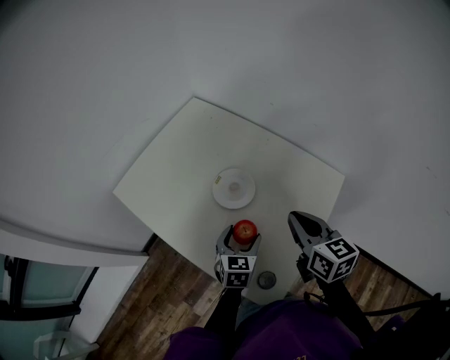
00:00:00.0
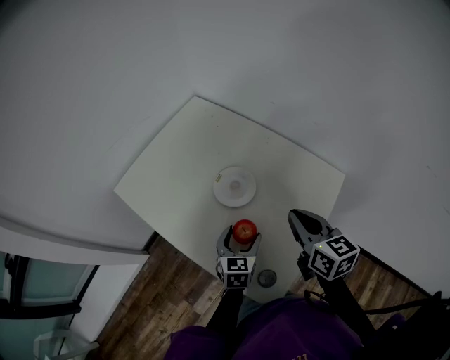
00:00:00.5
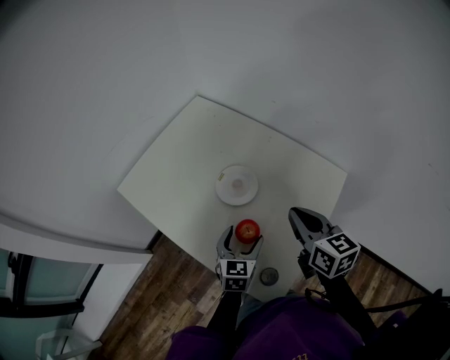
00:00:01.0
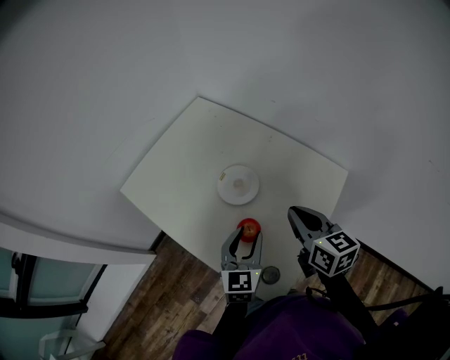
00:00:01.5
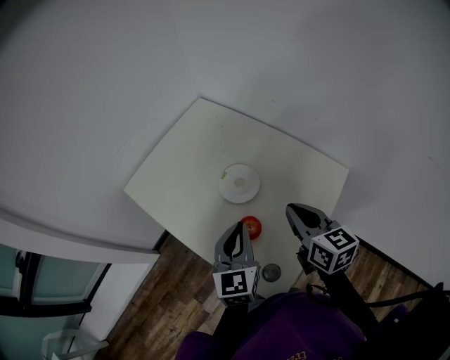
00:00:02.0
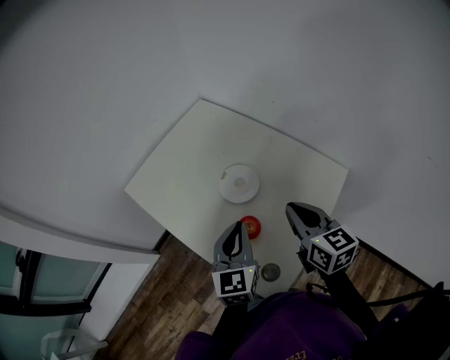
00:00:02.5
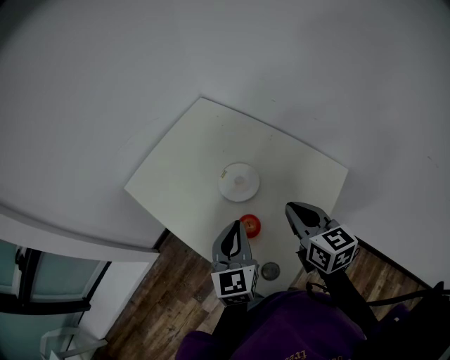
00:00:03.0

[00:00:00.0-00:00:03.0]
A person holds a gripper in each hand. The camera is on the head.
00:00:00.0 to 00:00:01.5: The left gripper goes approximately 10 cm upward, and closes its fingers.
00:00:01.5 to 00:00:03.0: The left gripper travels upward by about 5 cm, and closes its fingers.

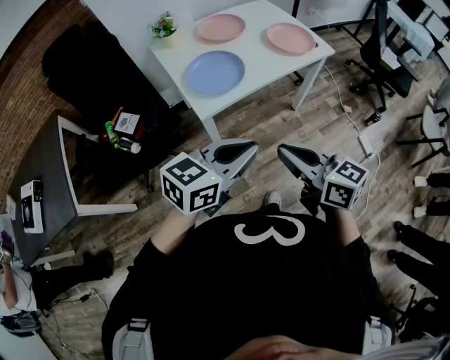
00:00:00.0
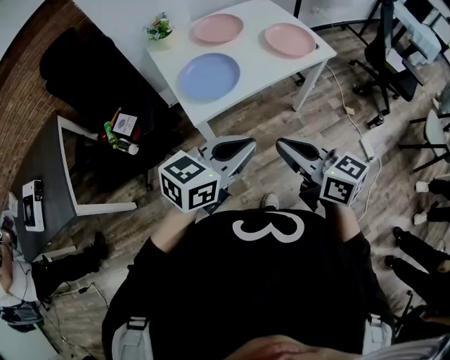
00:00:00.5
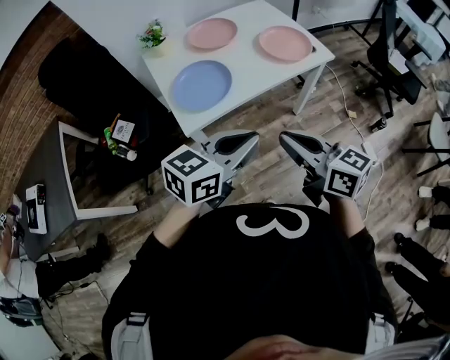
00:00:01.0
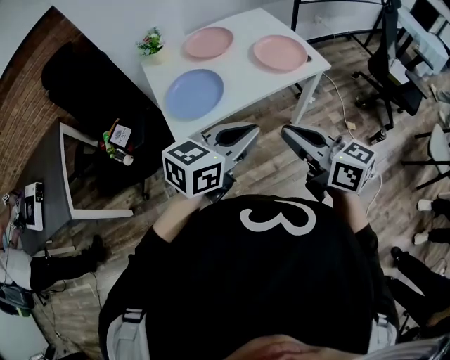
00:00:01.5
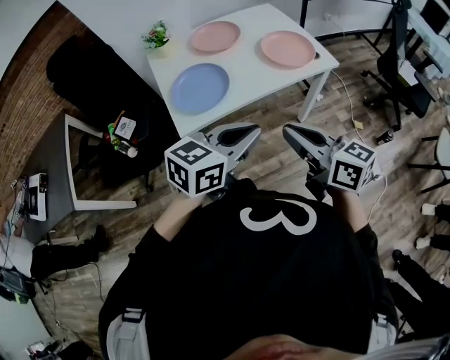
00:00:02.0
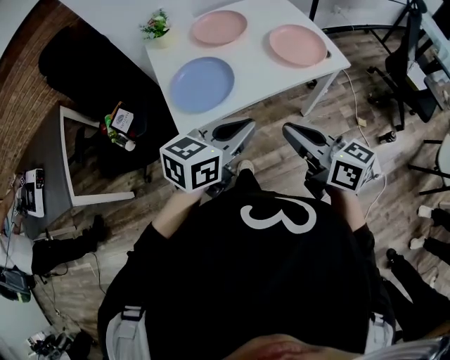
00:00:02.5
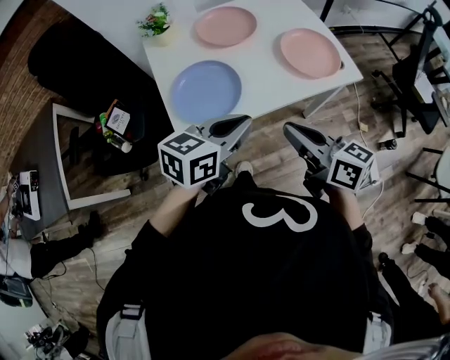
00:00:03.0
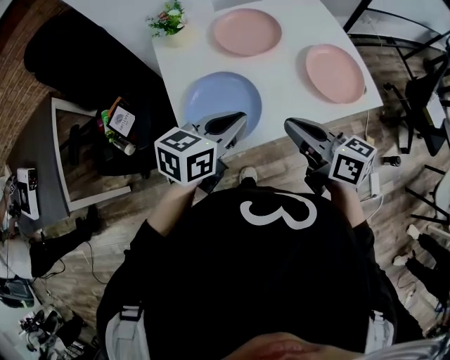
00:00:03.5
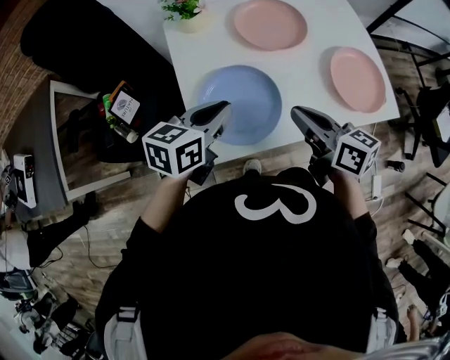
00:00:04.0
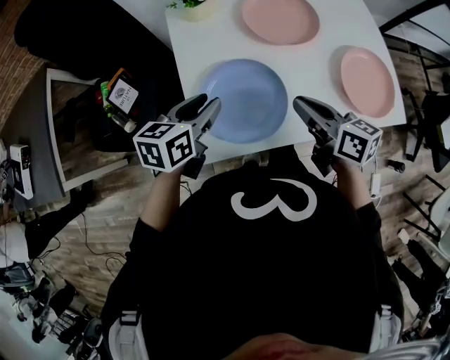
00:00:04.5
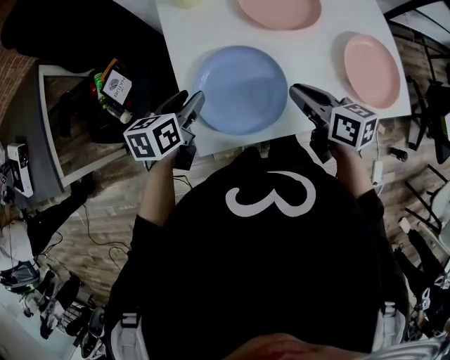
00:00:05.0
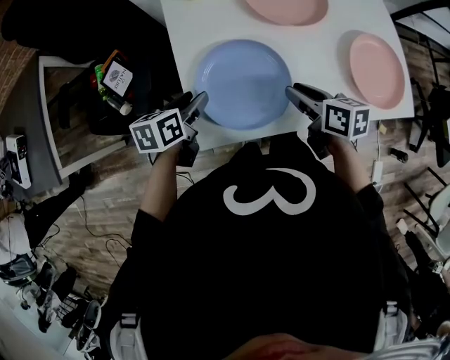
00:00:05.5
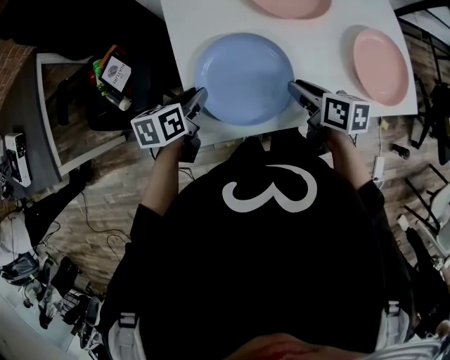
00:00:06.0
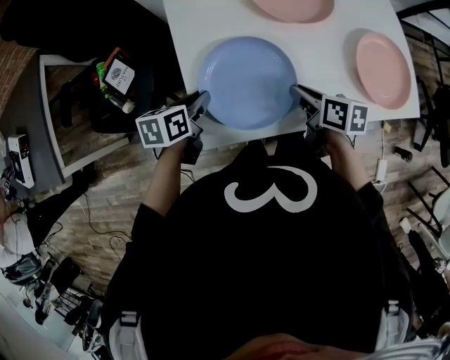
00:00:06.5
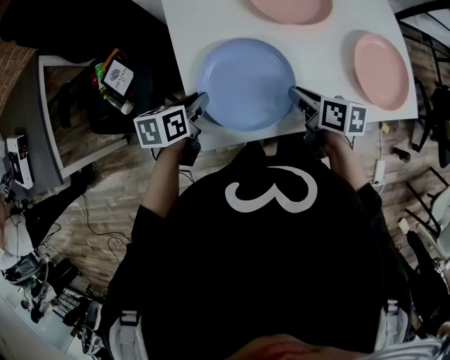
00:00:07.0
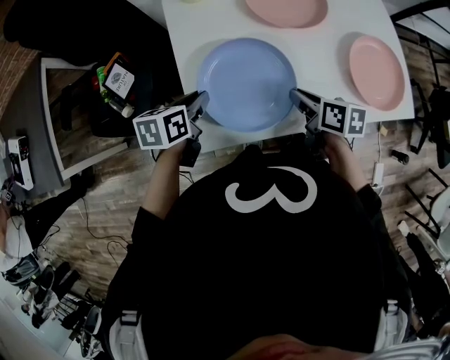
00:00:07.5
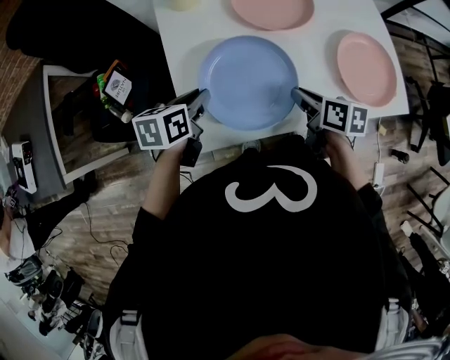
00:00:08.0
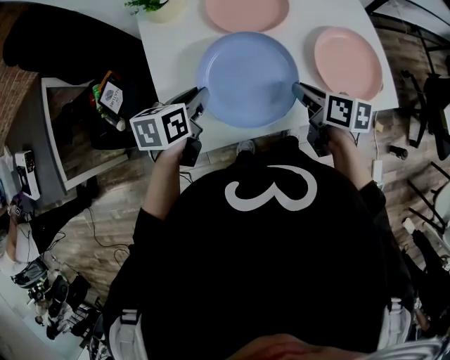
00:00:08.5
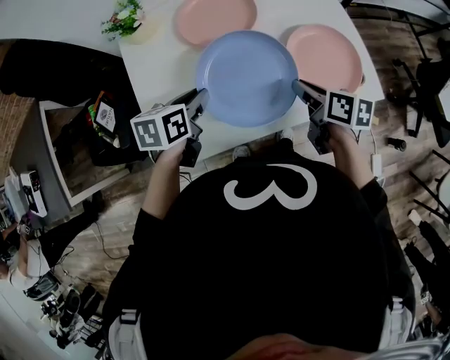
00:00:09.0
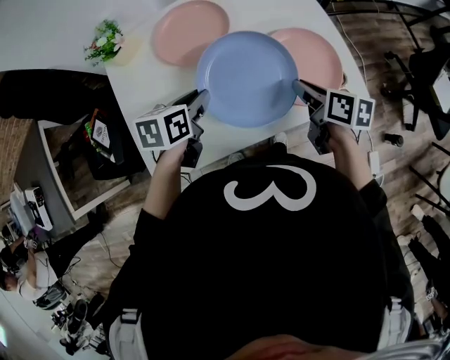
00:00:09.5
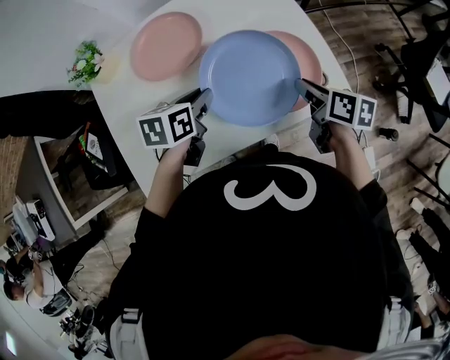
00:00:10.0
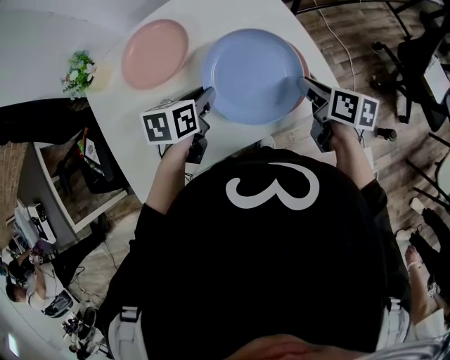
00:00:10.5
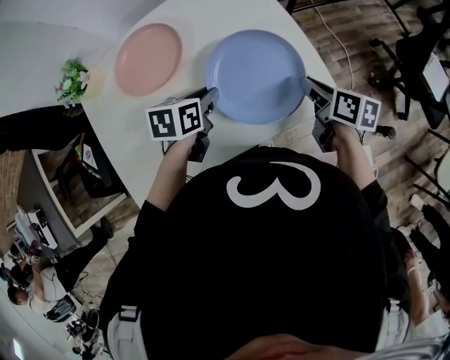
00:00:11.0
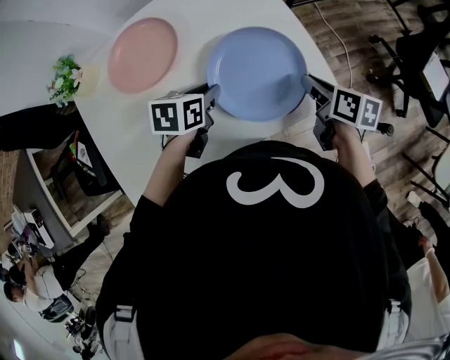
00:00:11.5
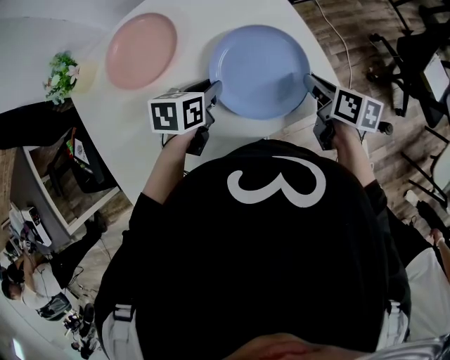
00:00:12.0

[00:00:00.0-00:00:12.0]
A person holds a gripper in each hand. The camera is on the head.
00:00:00.0 to 00:00:02.0: The grippers both shift to the right and forward by about 20 cm.
00:00:02.0 to 00:00:04.0: The two grippers go approximately 35 cm forward and to the left. The left gripper rotates approximately 30 degrees.
00:00:04.0 to 00:00:06.0: The right gripper shifts approximately 15 cm downward, turns by some 20 degrees, and opens its fingers; the left gripper shifts roughly 20 cm downward and to the left, turns by approximately 30 degrees, and opens up.
00:00:06.0 to 00:00:08.0: The left gripper goes roughly 10 cm upward and to the right.
00:00:08.0 to 00:00:10.0: Both grippers travel together to the right, approximately 30 cm.
00:00:10.0 to 00:00:12.0: The right gripper travels to the right by approximately 10 cm. Meanwhile the left gripper is displaced to the right and downward by approximately 10 cm.

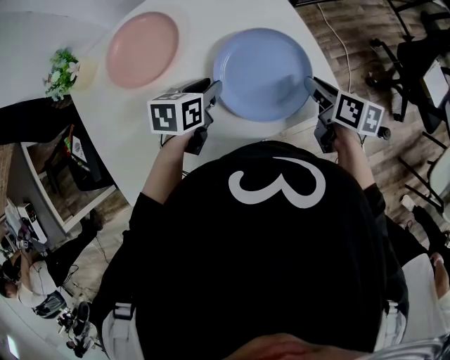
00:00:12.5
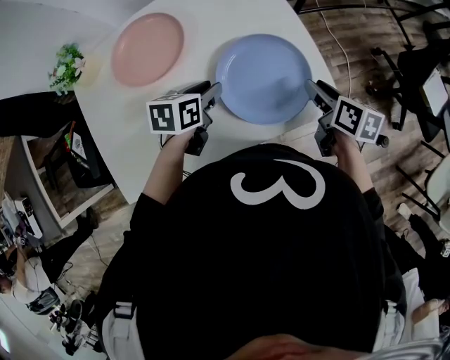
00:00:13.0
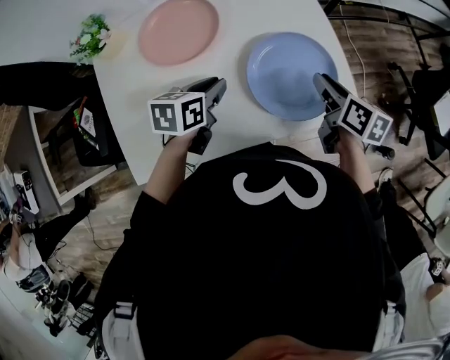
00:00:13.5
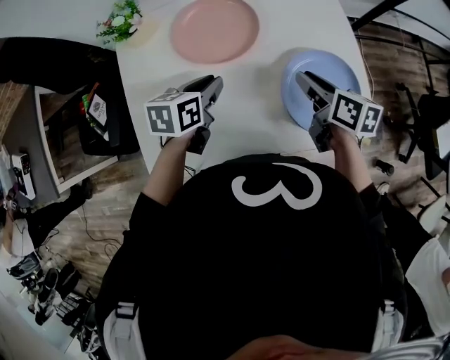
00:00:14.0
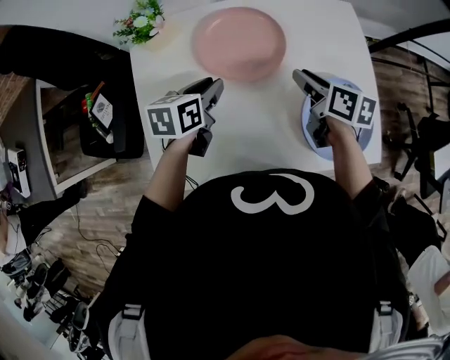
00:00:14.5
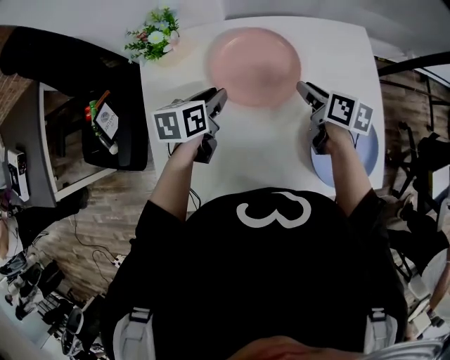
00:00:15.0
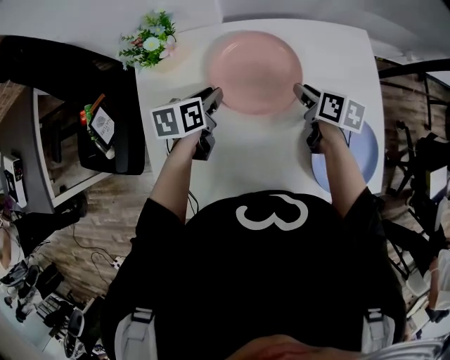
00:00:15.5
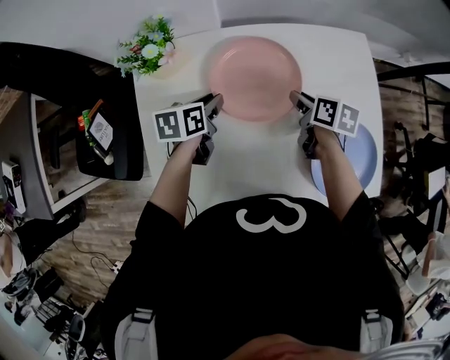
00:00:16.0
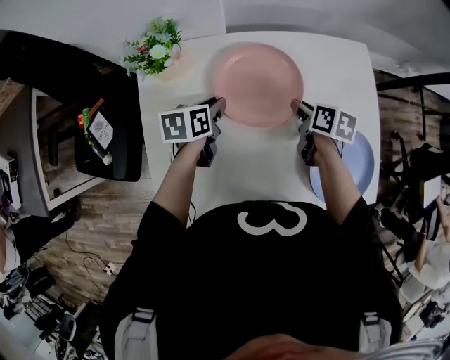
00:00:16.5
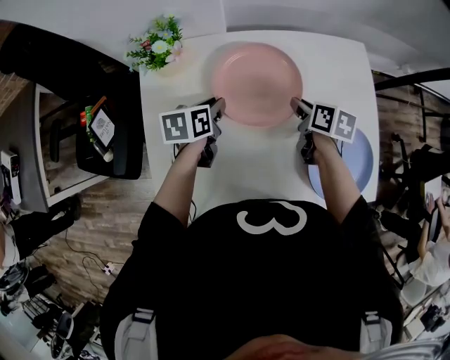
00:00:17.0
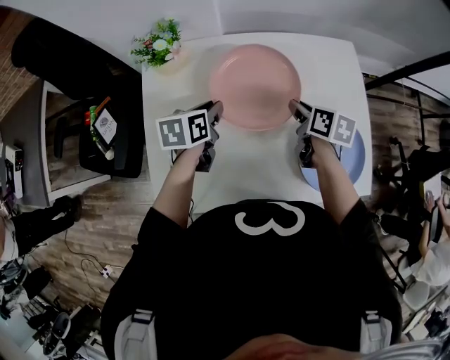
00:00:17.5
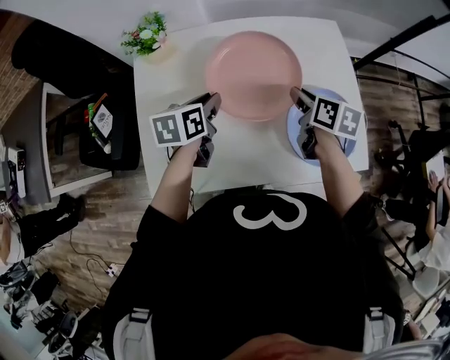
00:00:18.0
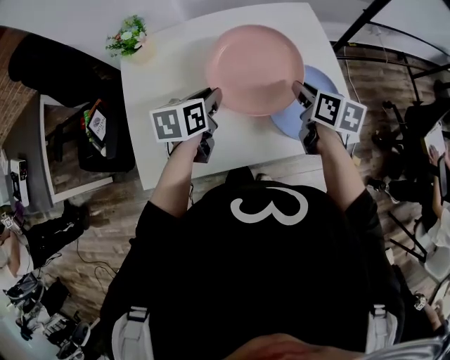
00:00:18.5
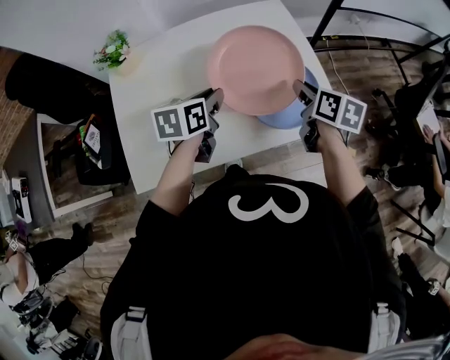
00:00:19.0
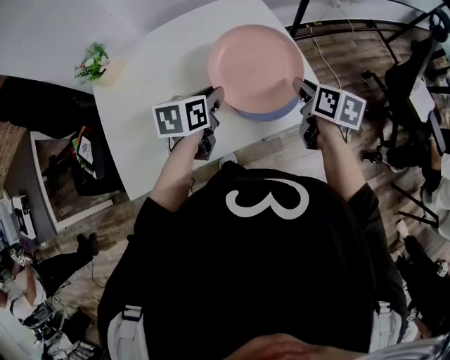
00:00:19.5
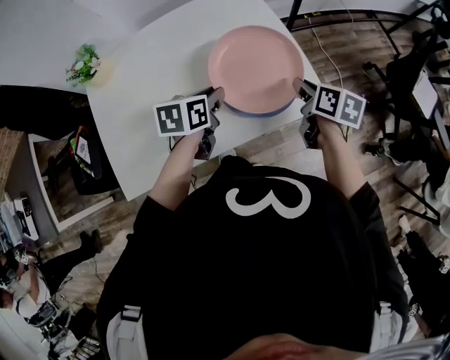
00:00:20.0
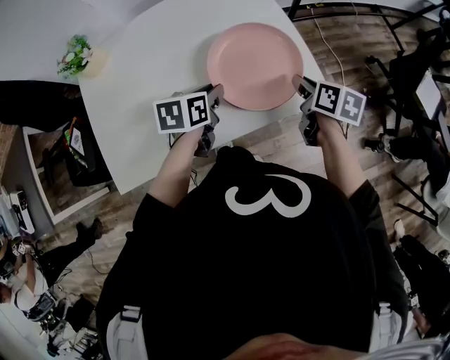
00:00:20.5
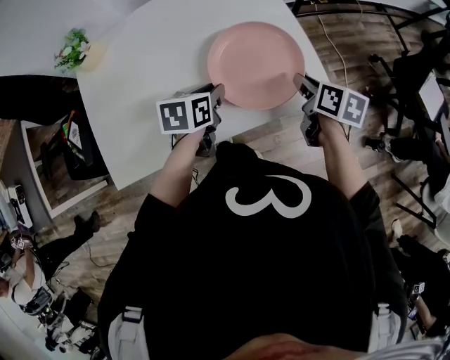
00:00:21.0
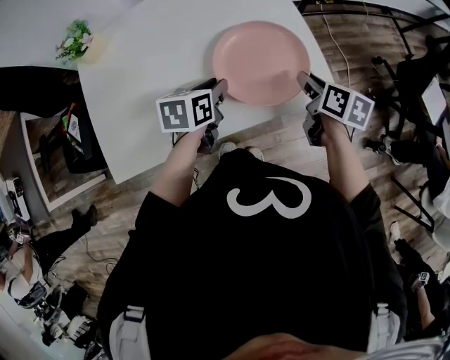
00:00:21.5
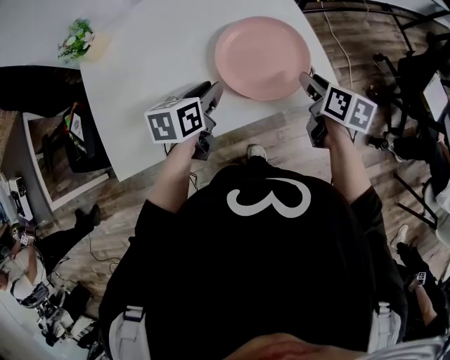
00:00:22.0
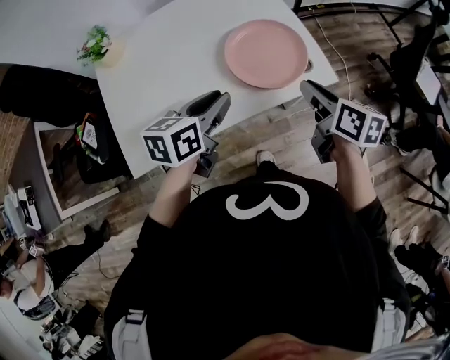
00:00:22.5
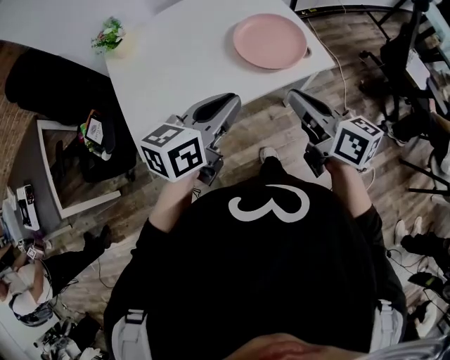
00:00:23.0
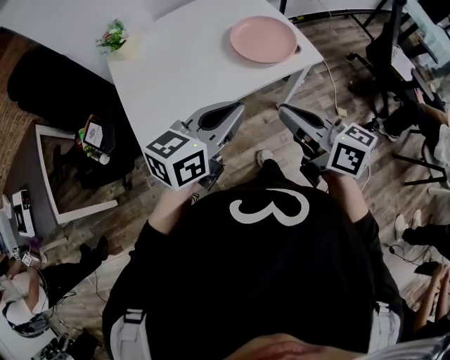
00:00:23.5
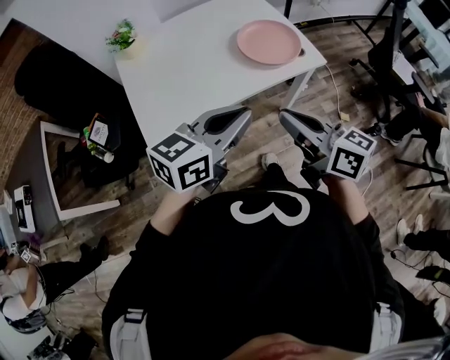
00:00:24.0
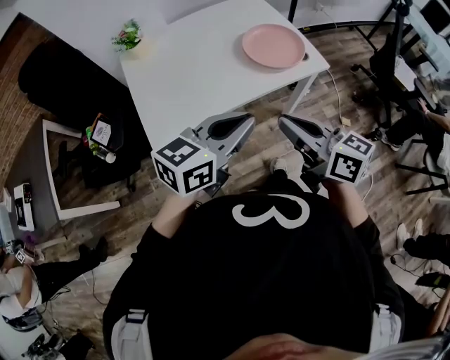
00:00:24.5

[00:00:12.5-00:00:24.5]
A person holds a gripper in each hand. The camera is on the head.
00:00:12.5 to 00:00:14.5: Both grippers move to the left, some 25 cm. The left gripper swivels about 20 degrees.
00:00:14.5 to 00:00:16.5: The left gripper shifts about 10 cm forward and downward, while the right gripper shifts approximately 10 cm downward and forward.
00:00:16.5 to 00:00:18.5: The grippers both shift backward, to the right and upward by about 20 cm.
00:00:18.5 to 00:00:20.5: The grippers both shift to the right and downward by about 20 cm.
00:00:20.5 to 00:00:22.5: Both grippers travel together backward and upward, approximately 15 cm. The right gripper opens and closes again.
00:00:22.5 to 00:00:24.5: The left gripper goes some 25 cm backward and upward, changes its angle by approximately 30 degrees, and closes. Meanwhile the right gripper is displaced backward, to the left and upward by roughly 30 cm, and turns by about 30 degrees.
